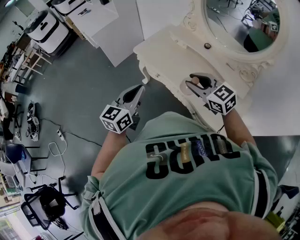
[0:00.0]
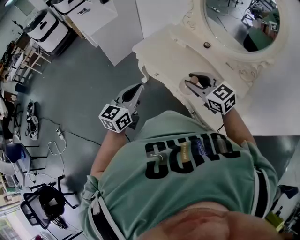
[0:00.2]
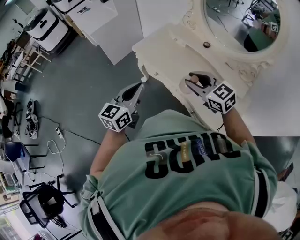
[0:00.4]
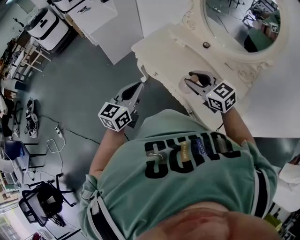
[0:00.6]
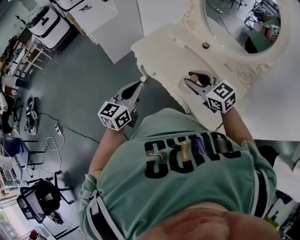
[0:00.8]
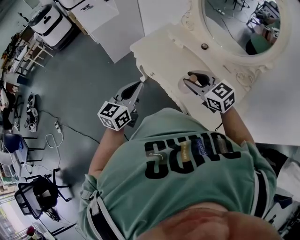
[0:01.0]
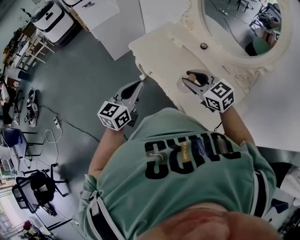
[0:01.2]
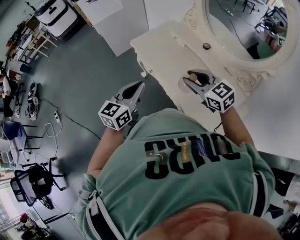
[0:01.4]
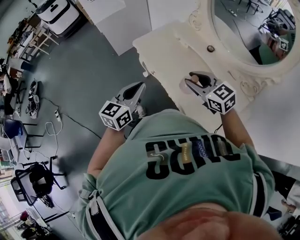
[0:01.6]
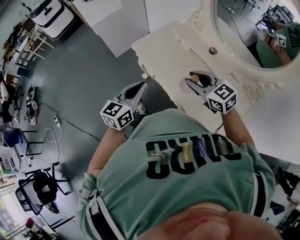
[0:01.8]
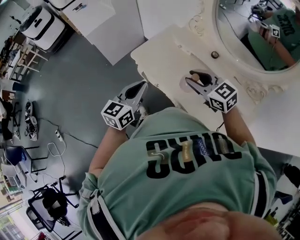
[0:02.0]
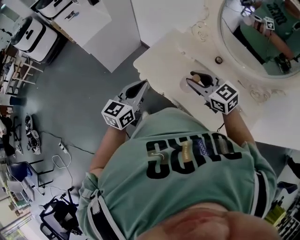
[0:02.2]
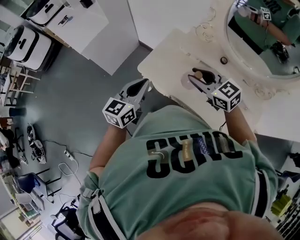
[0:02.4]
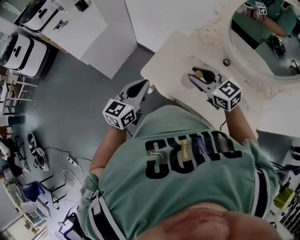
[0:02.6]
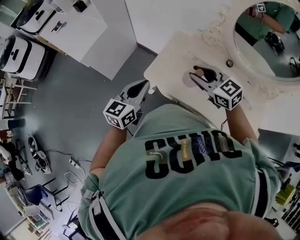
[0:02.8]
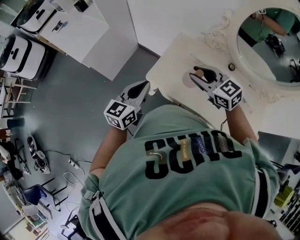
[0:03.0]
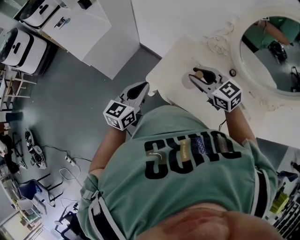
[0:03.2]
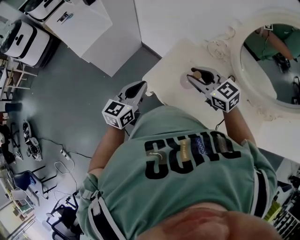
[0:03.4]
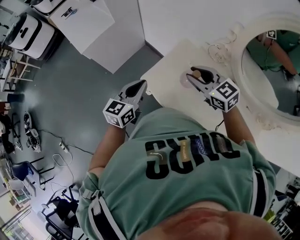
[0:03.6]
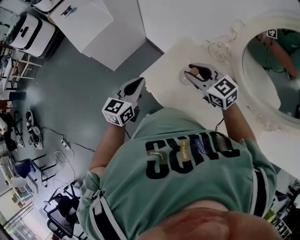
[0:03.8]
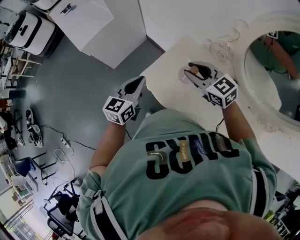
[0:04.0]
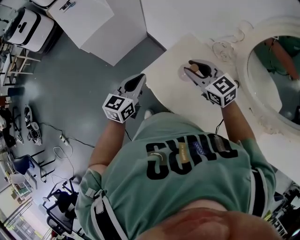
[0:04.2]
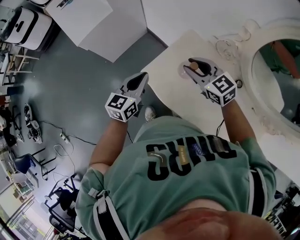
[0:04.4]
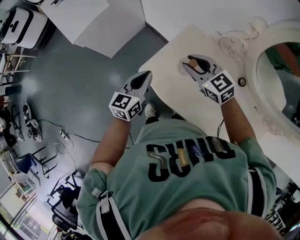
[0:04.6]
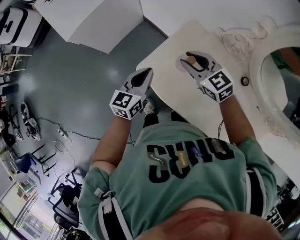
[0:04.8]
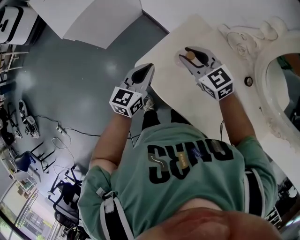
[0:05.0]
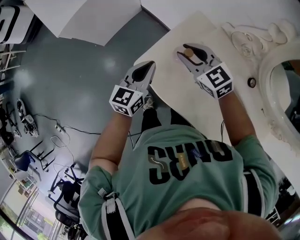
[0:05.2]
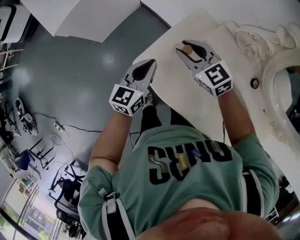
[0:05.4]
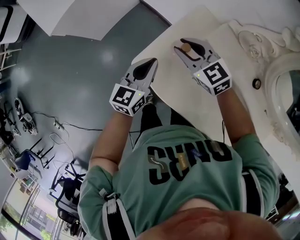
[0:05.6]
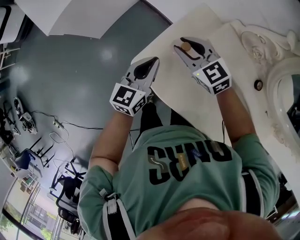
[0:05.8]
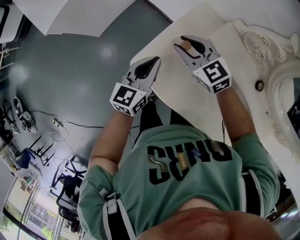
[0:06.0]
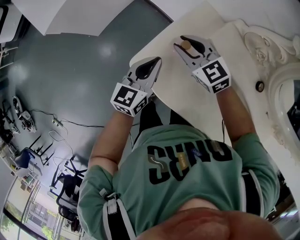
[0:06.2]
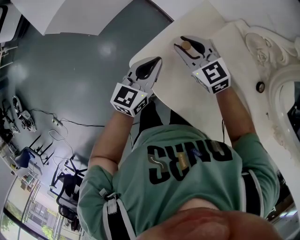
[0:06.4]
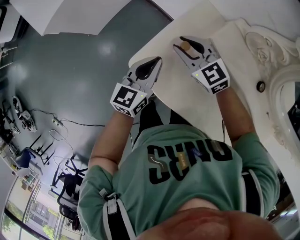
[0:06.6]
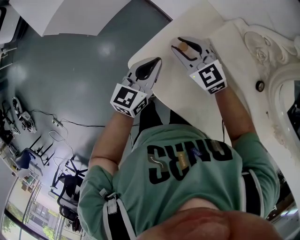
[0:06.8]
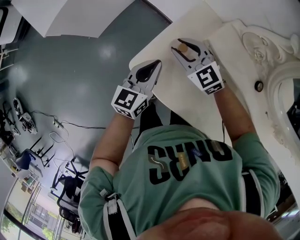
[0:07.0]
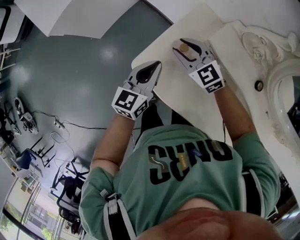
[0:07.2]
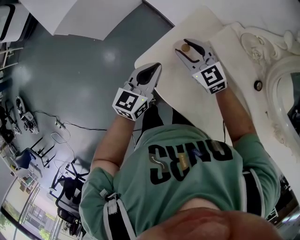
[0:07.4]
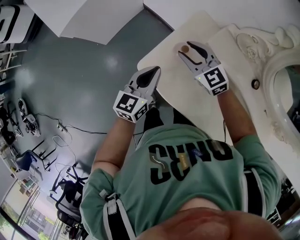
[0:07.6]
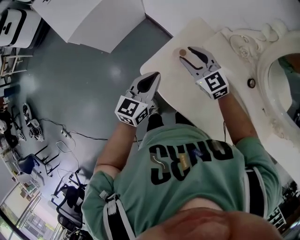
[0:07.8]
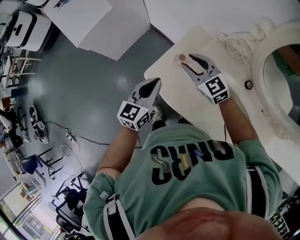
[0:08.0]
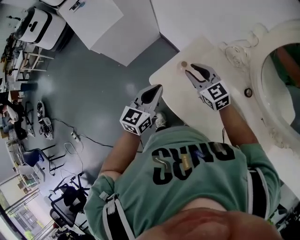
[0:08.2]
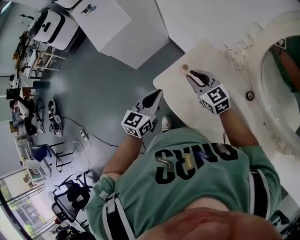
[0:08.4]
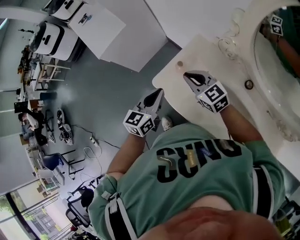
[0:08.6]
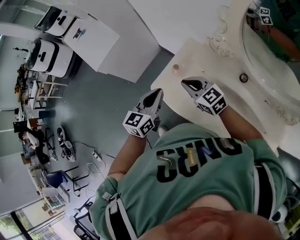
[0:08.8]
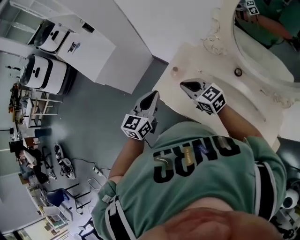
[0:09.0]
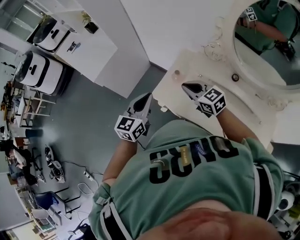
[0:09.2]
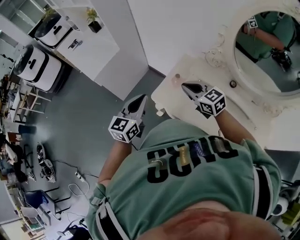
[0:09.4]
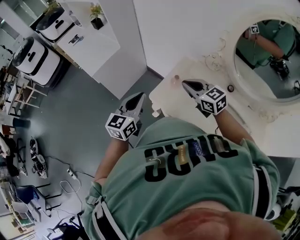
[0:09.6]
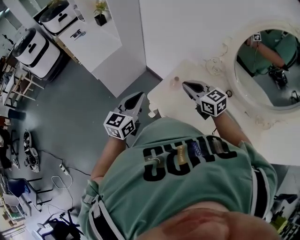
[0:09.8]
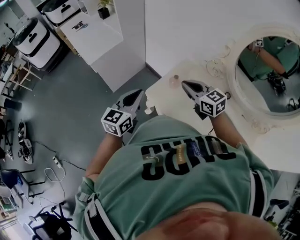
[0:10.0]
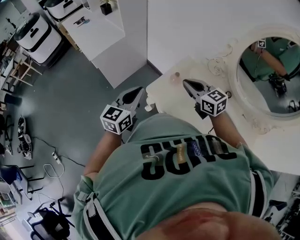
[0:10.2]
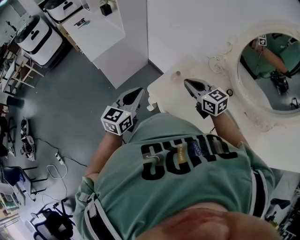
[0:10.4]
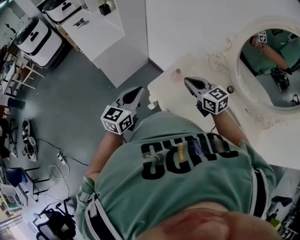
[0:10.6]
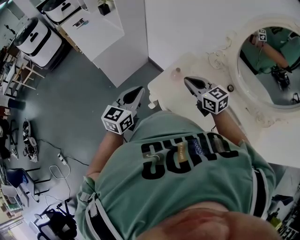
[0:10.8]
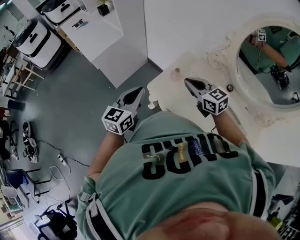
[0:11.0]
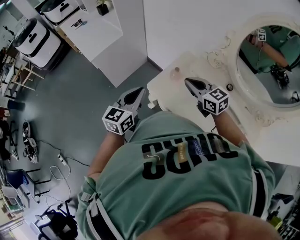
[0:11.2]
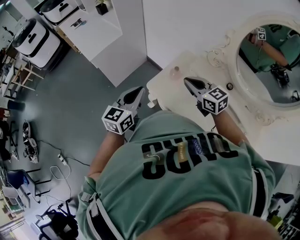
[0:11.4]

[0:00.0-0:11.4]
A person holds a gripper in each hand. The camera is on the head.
0:00.0 to 0:01.4: The grippers both shift to the right by approximately 10 cm.
0:01.4 to 0:02.8: Both grippers travel together forward and to the left, about 40 cm. The left gripper rotates roughly 20 degrees, while the right gripper changes its angle by about 20 degrees.
0:02.8 to 0:04.2: The left gripper is displaced forward and to the right by approximately 10 cm. Meanwhile the right gripper heads forward, covering roughly 10 cm.
0:04.2 to 0:05.6: The grippers both shift downward and forward by approximately 20 cm.
0:05.6 to 0:07.2: The right gripper travels downward by some 5 cm.
0:07.2 to 0:08.6: Both grippers travel together upward and backward, roughly 20 cm. The right gripper closes up.
0:08.6 to 0:10.0: The right gripper moves upward, to the left and backward, some 15 cm, while the left gripper shifts approximately 20 cm to the left and upward.
0:10.0 to 0:11.4: The grippers make only small movements.

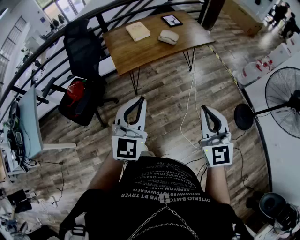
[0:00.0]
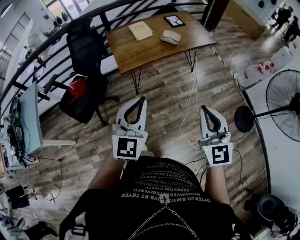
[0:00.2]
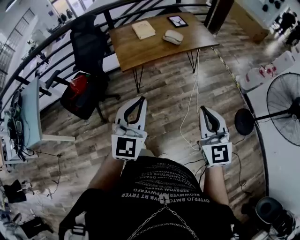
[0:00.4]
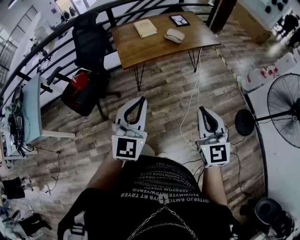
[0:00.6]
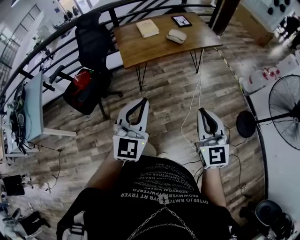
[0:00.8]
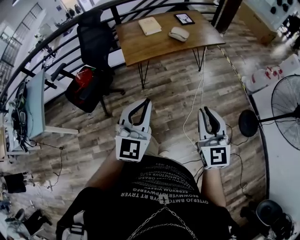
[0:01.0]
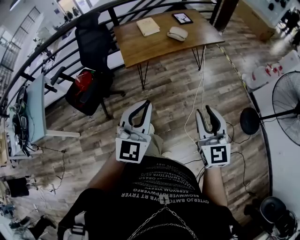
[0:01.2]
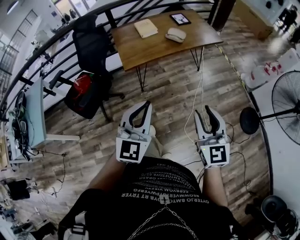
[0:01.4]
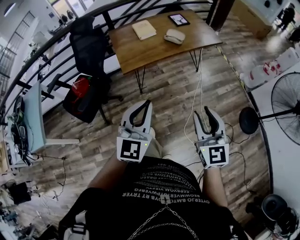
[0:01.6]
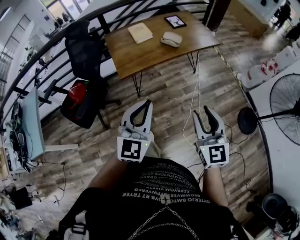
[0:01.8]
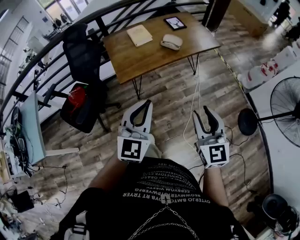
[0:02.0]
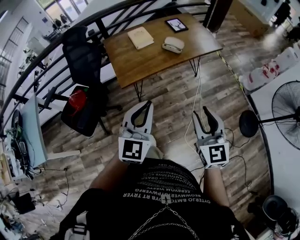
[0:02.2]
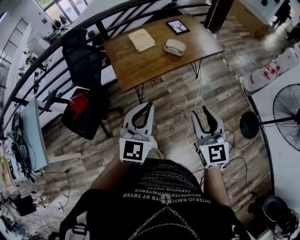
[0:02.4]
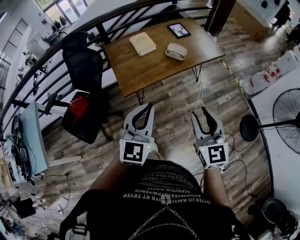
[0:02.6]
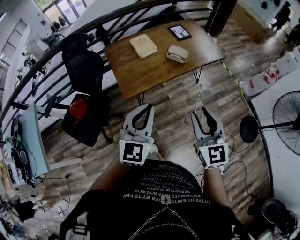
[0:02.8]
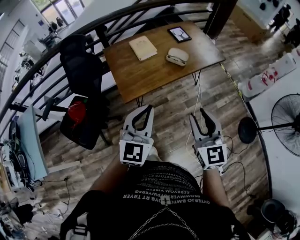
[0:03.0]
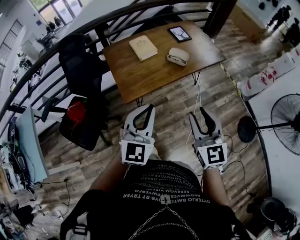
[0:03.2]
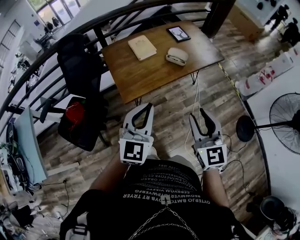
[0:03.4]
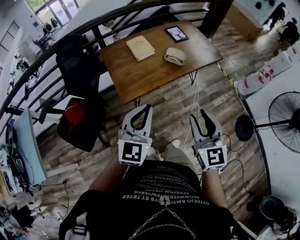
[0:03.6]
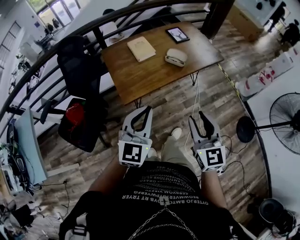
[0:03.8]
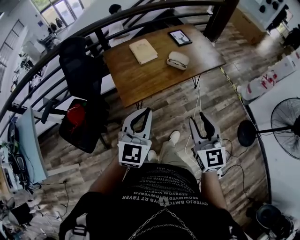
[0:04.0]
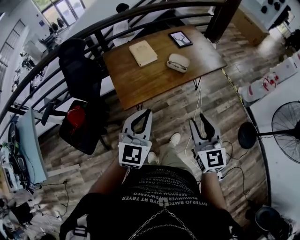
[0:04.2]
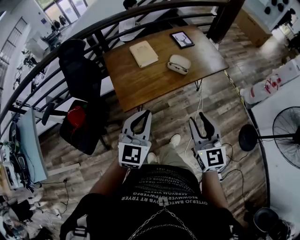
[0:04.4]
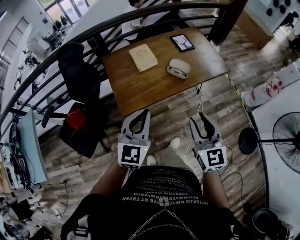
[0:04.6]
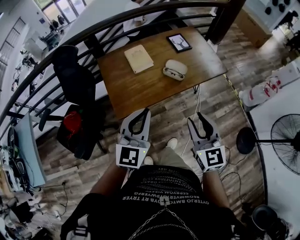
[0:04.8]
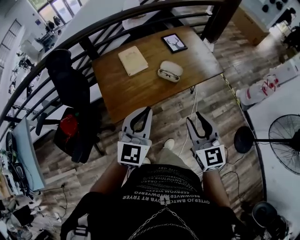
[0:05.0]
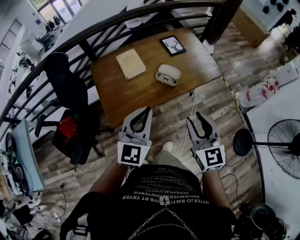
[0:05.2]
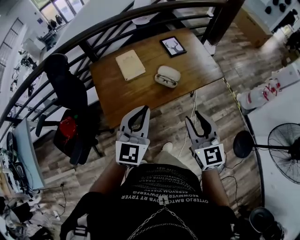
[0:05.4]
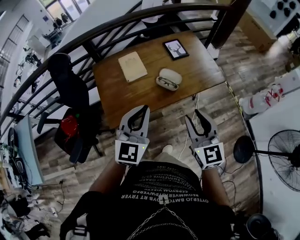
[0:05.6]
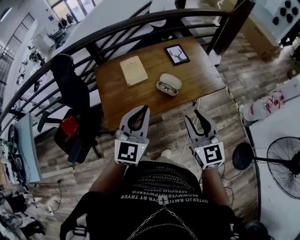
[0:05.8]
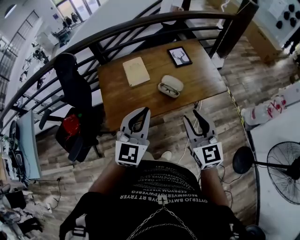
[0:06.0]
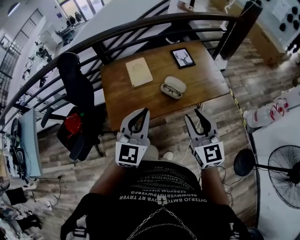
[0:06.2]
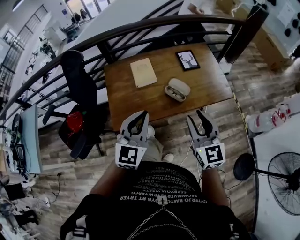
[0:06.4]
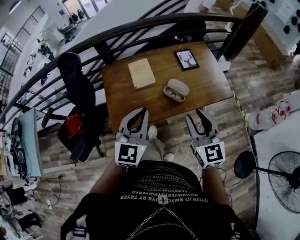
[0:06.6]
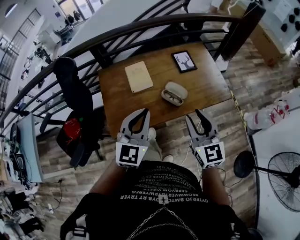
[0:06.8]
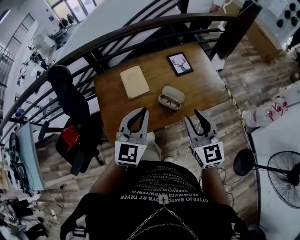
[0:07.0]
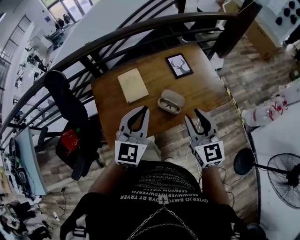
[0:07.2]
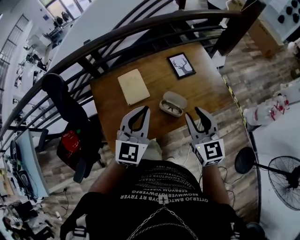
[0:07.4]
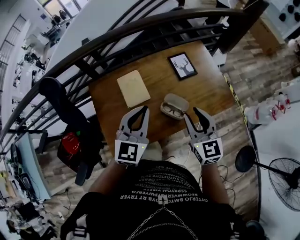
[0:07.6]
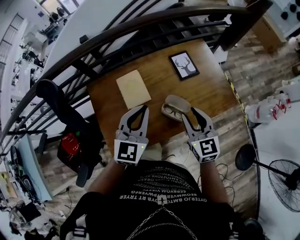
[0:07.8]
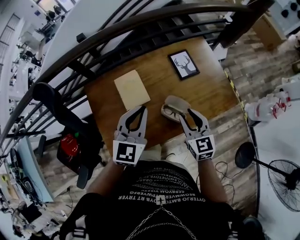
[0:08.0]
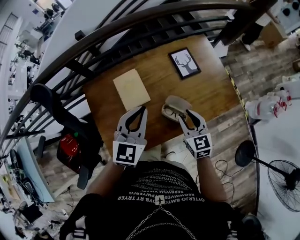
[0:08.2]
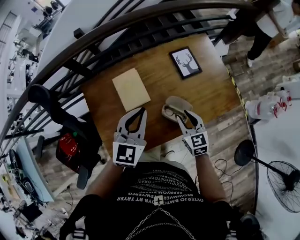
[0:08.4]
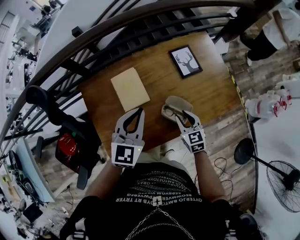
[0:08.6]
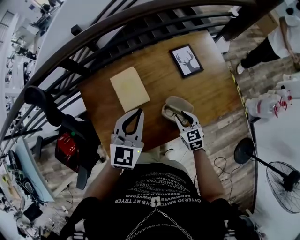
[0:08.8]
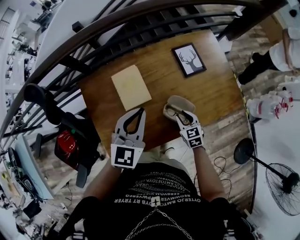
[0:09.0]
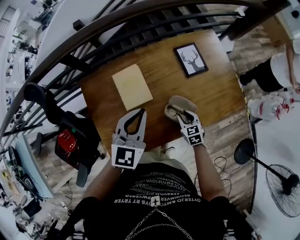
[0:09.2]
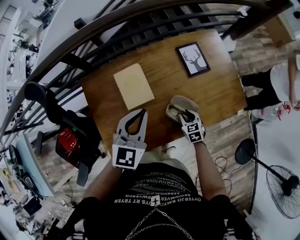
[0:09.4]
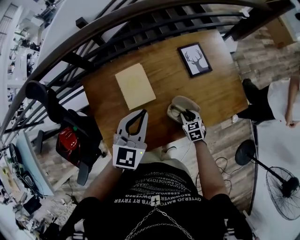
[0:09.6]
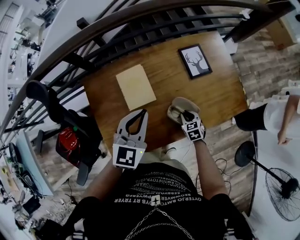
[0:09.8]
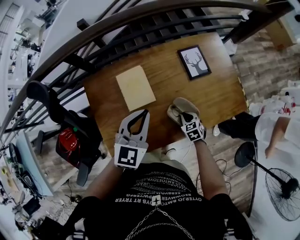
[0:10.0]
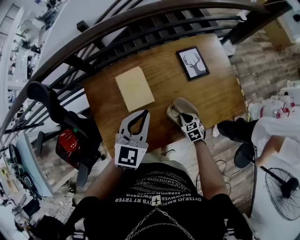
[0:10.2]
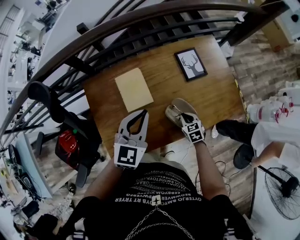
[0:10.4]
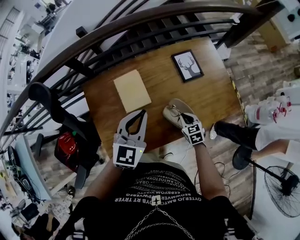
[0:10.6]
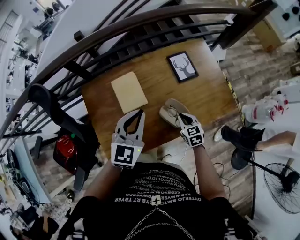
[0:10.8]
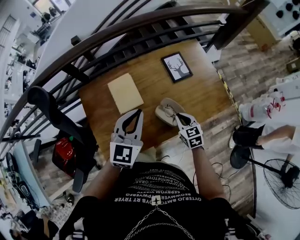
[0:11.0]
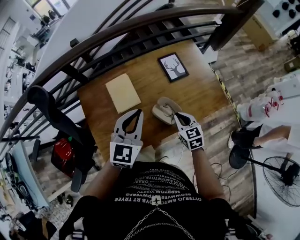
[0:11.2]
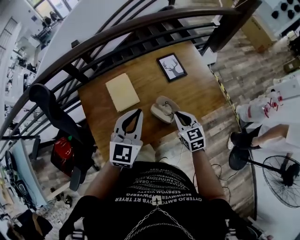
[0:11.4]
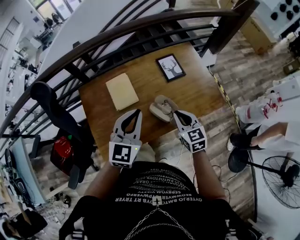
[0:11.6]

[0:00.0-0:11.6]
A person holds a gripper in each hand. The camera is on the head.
0:00.0 to 0:01.4: The right gripper opens.
0:01.4 to 0:02.8: The two grippers go roughly 20 cm forward.
0:02.8 to 0:04.4: The grippers both shift forward by some 10 cm.
0:04.4 to 0:05.8: Both grippers move forward and to the right, some 20 cm.
0:05.8 to 0:07.2: Both grippers move forward, approximately 15 cm.
0:07.2 to 0:08.8: The right gripper shifts some 35 cm downward and forward, and swivels roughly 30 degrees; the left gripper is displaced forward and downward by approximately 20 cm.
0:08.8 to 0:10.2: The right gripper is displaced downward by about 10 cm, and closes.
0:10.2 to 0:11.6: The left gripper shifts approximately 10 cm backward and upward; the right gripper travels upward by roughly 25 cm, and turns by approximately 30 degrees.

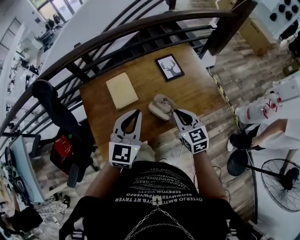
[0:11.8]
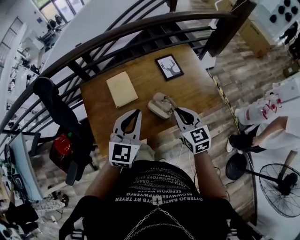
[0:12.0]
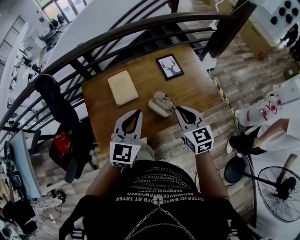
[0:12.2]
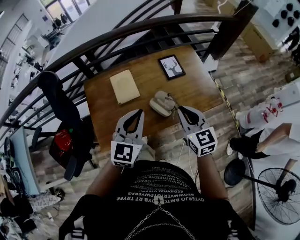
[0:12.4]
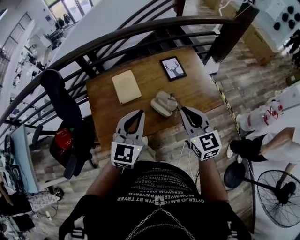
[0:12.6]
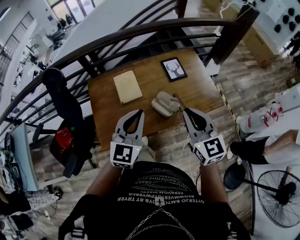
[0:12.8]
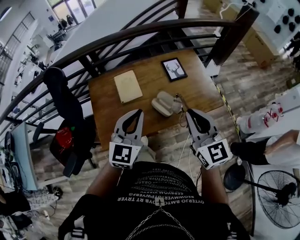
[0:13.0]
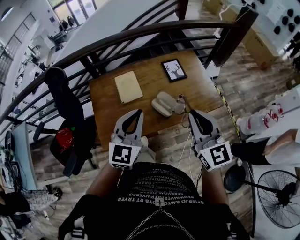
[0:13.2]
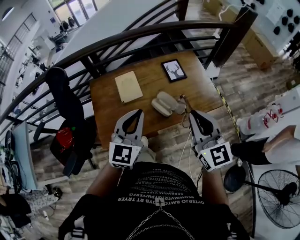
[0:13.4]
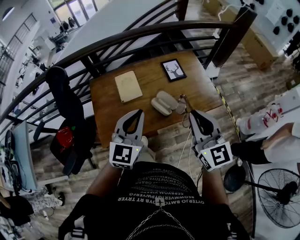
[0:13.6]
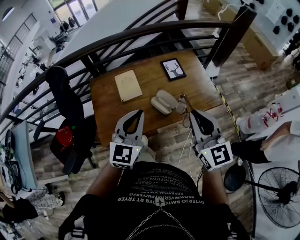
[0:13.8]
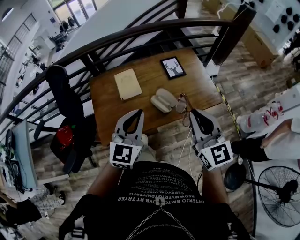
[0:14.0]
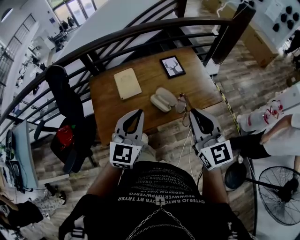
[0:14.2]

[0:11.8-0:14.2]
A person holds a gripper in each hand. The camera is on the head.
0:11.8 to 0:13.0: The left gripper travels backward by some 10 cm. The right gripper heads upward and backward, covering some 20 cm, and swivels approximately 20 degrees.
0:13.0 to 0:14.2: There are only small adjustments of the grippers.
